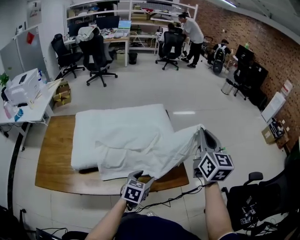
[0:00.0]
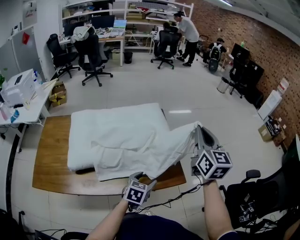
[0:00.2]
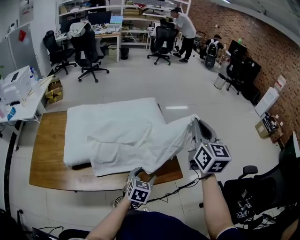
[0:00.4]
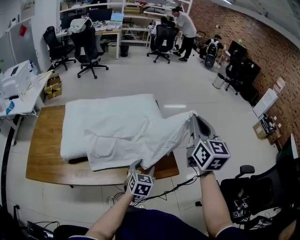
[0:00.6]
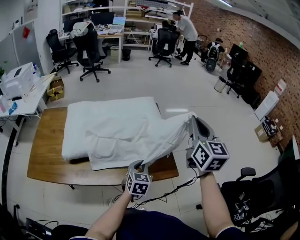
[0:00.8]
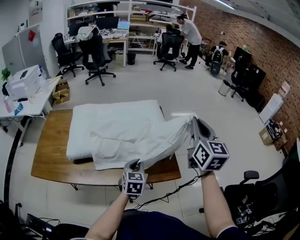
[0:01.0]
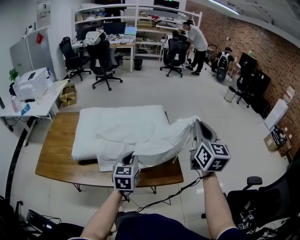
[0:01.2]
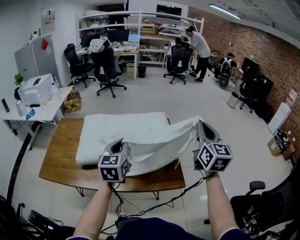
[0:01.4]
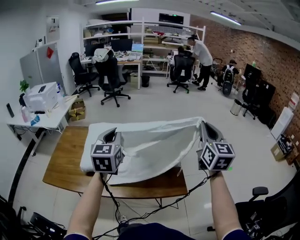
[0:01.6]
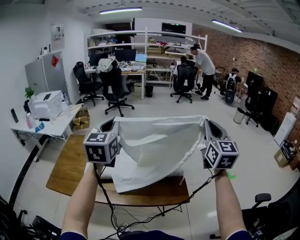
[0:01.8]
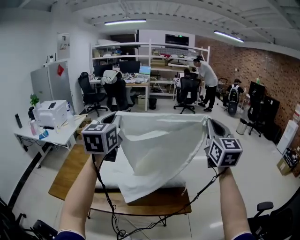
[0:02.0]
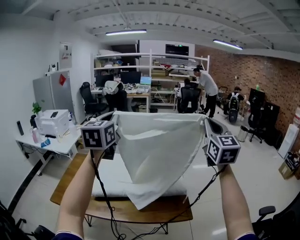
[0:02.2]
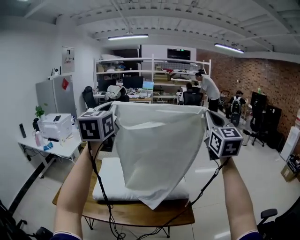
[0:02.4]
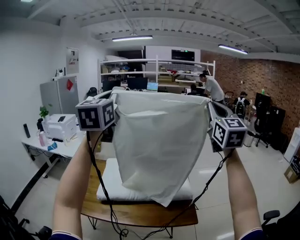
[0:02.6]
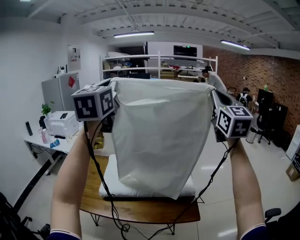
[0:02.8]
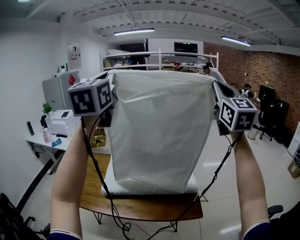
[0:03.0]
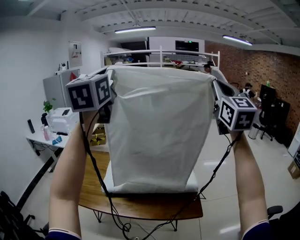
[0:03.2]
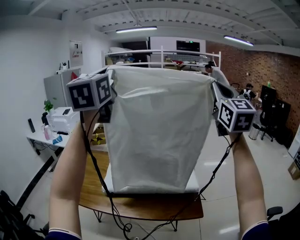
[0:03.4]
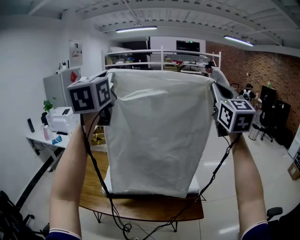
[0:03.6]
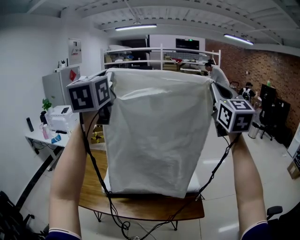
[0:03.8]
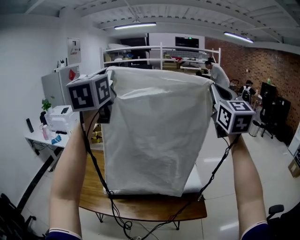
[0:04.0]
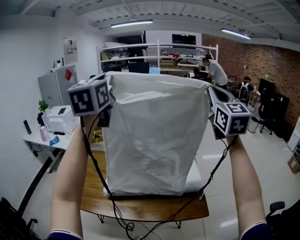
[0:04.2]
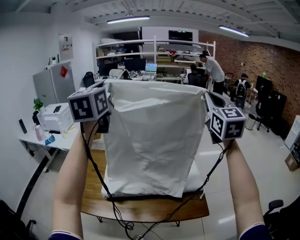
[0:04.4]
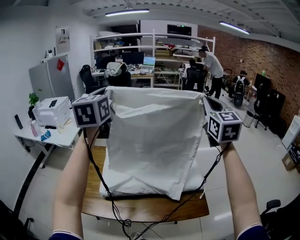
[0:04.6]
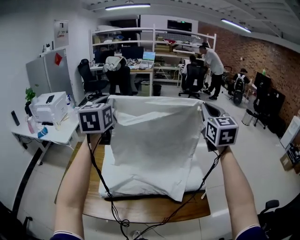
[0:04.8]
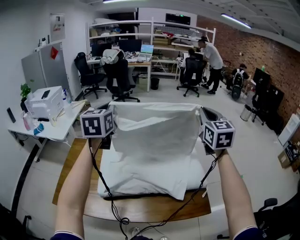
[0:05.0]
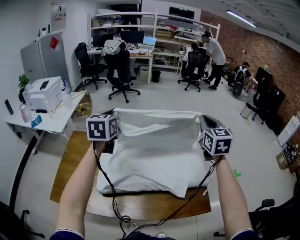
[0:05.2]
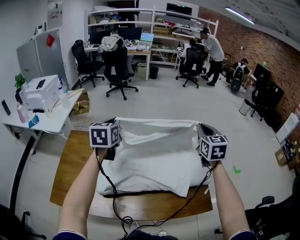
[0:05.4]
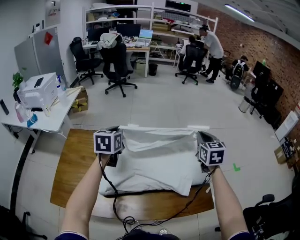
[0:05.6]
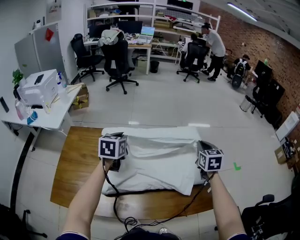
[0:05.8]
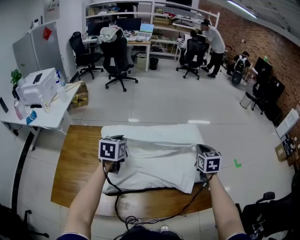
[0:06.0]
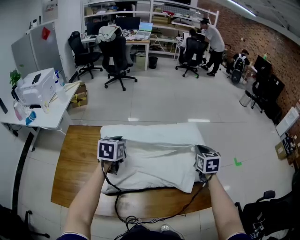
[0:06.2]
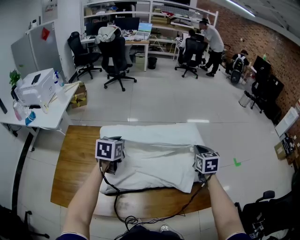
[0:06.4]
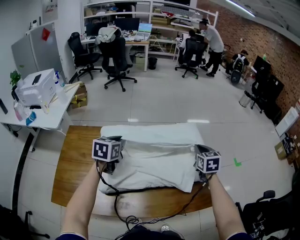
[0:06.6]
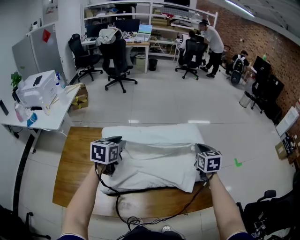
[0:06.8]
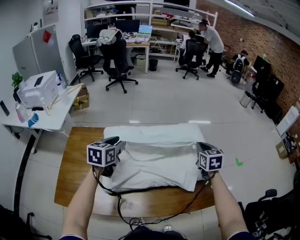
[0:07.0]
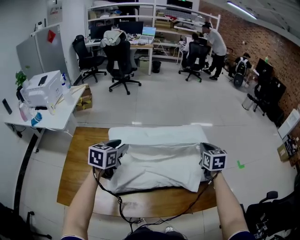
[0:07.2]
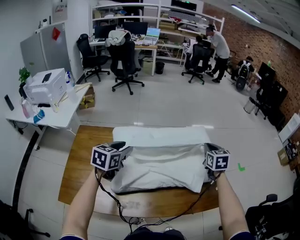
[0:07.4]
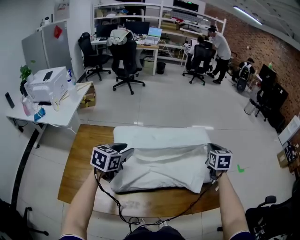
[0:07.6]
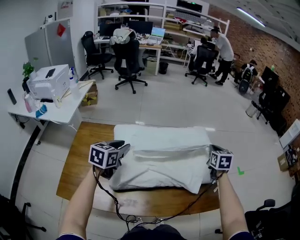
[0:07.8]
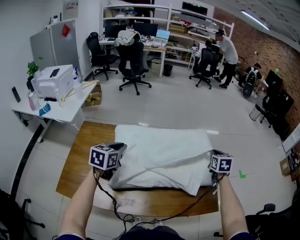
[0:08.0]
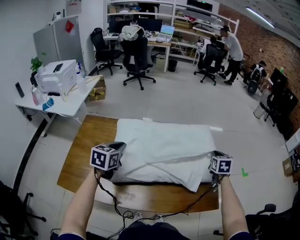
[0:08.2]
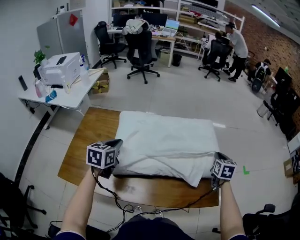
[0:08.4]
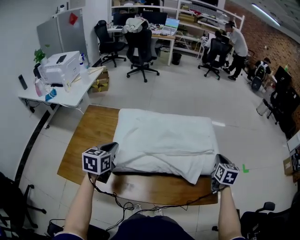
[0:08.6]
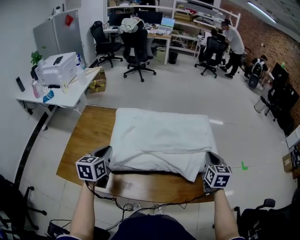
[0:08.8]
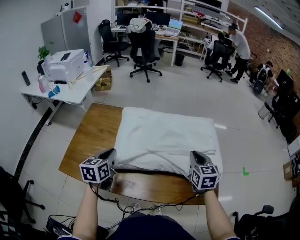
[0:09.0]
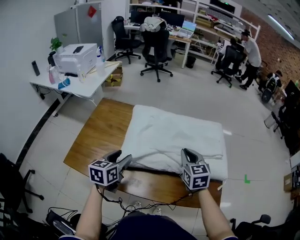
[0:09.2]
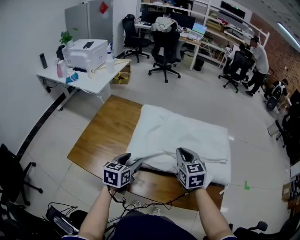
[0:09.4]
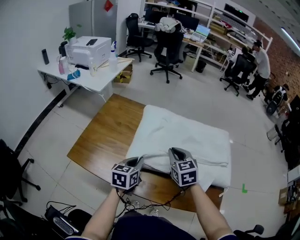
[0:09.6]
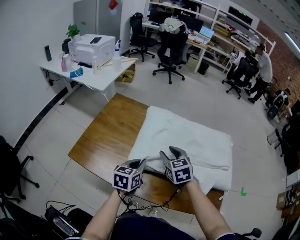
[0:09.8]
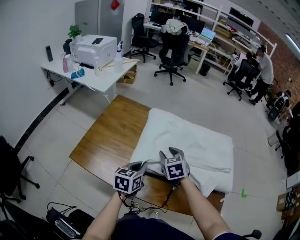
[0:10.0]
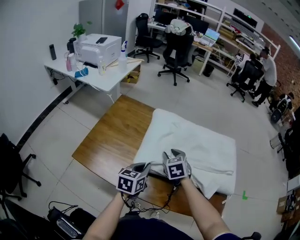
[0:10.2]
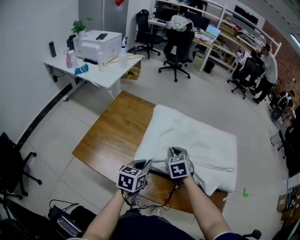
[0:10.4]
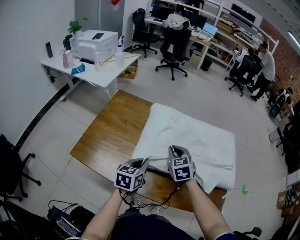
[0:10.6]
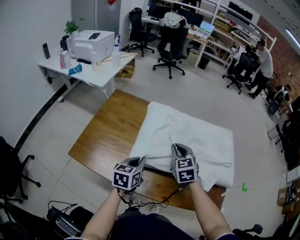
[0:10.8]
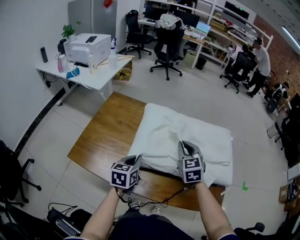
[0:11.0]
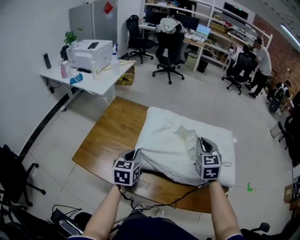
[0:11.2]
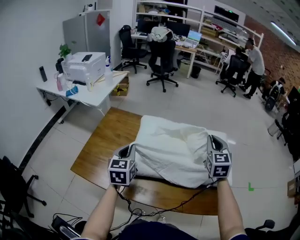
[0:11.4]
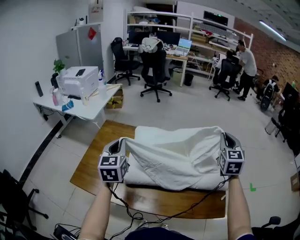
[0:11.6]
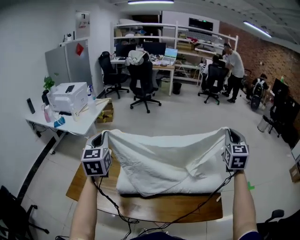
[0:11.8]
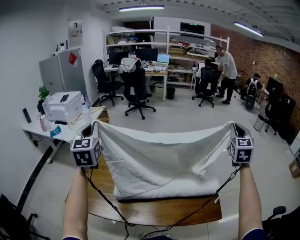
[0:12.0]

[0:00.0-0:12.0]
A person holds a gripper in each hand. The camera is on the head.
0:00.0 to 0:01.6: The left gripper is displaced upward and to the left by roughly 35 cm, angles its fingers upward, by roughly 30 degrees, and closes, while the right gripper goes roughly 5 cm upward.
0:01.6 to 0:03.0: The grippers both shift upward by roughly 35 cm. The left gripper rotates roughly 30 degrees; the right gripper rotates roughly 20 degrees.
0:03.0 to 0:04.4: The left gripper heads forward, downward and to the left, covering about 15 cm; the right gripper travels downward and forward by about 15 cm.
0:04.4 to 0:06.0: The grippers both shift downward by approximately 50 cm. The right gripper points its fingers some 40 degrees further downward. The left gripper angles its fingers downward, by roughly 40 degrees.
0:06.0 to 0:07.6: The left gripper shifts roughly 10 cm backward, and opens.
0:07.6 to 0:09.0: The left gripper heads backward, covering roughly 15 cm, changes its angle by about 30 degrees, and closes up. Meanwhile the right gripper shifts about 15 cm backward and to the left.
0:09.0 to 0:10.4: The right gripper shifts approximately 25 cm to the left, rotates roughly 30 degrees, and opens, then closes again. The left gripper shifts about 5 cm downward, and opens, then closes once more.
0:10.4 to 0:12.0: The left gripper moves upward, about 35 cm, and turns by some 50 degrees; the right gripper travels to the right and upward by some 50 cm, and points its fingers some 40 degrees further upward.

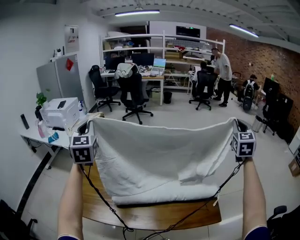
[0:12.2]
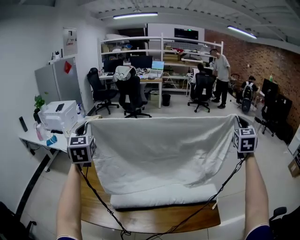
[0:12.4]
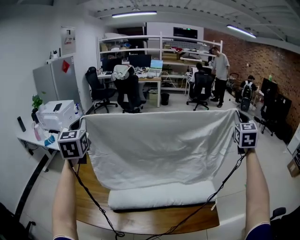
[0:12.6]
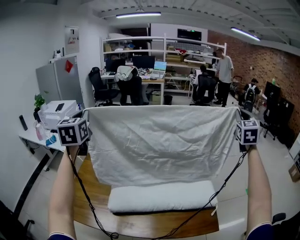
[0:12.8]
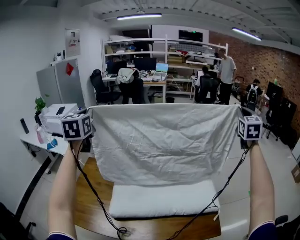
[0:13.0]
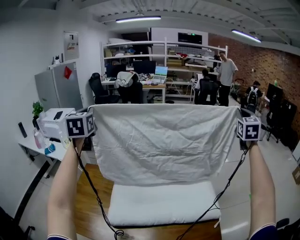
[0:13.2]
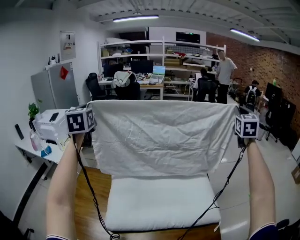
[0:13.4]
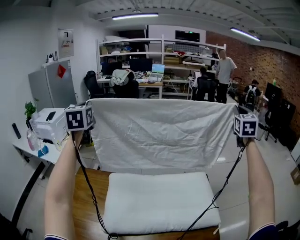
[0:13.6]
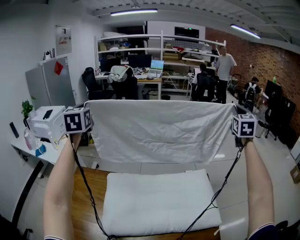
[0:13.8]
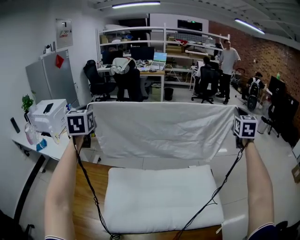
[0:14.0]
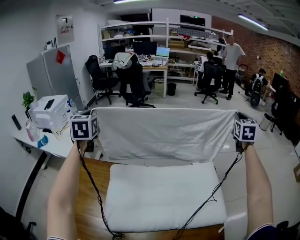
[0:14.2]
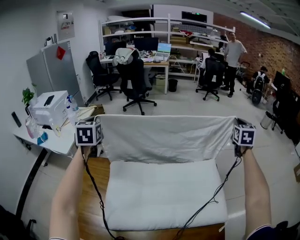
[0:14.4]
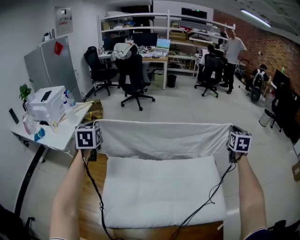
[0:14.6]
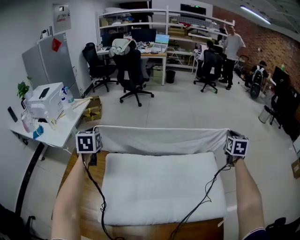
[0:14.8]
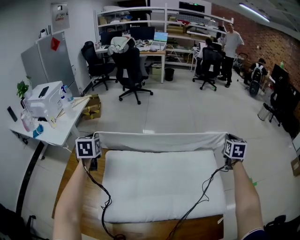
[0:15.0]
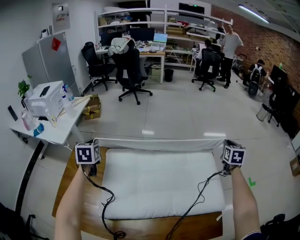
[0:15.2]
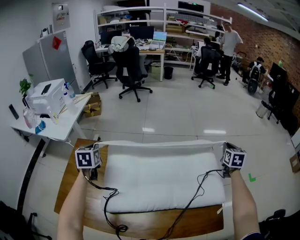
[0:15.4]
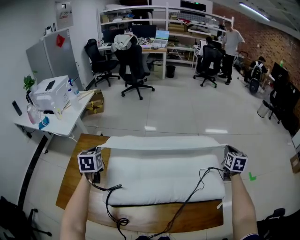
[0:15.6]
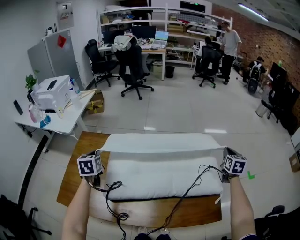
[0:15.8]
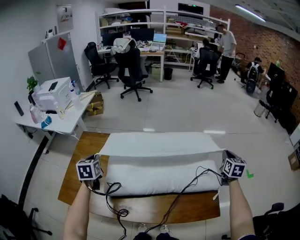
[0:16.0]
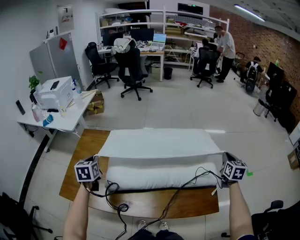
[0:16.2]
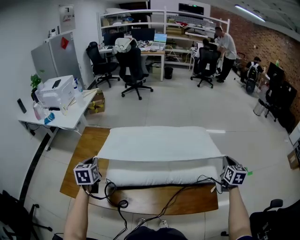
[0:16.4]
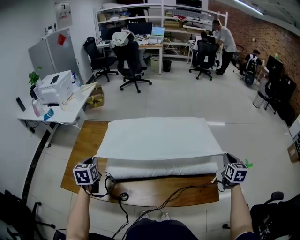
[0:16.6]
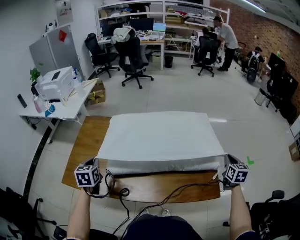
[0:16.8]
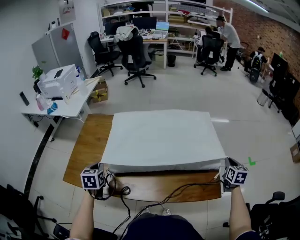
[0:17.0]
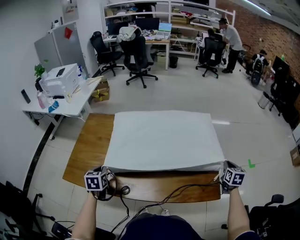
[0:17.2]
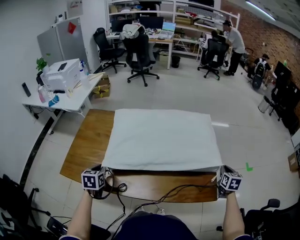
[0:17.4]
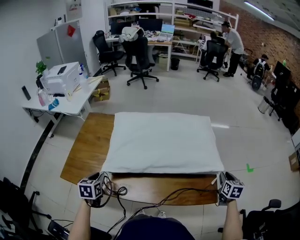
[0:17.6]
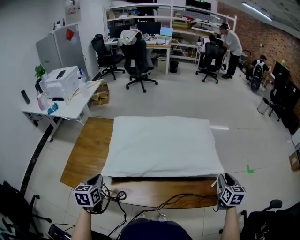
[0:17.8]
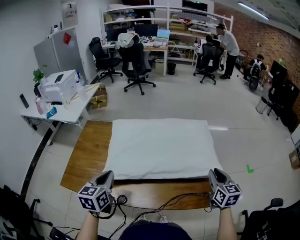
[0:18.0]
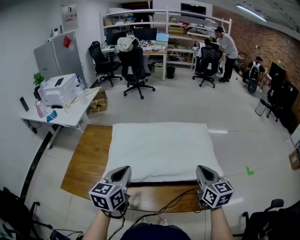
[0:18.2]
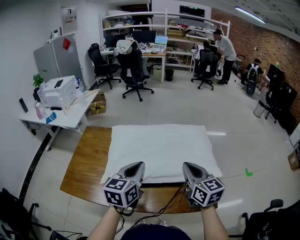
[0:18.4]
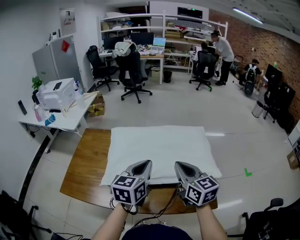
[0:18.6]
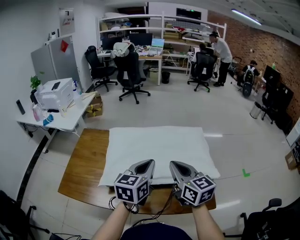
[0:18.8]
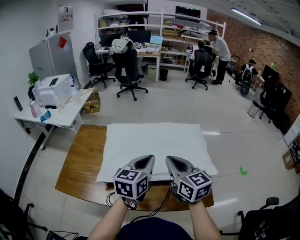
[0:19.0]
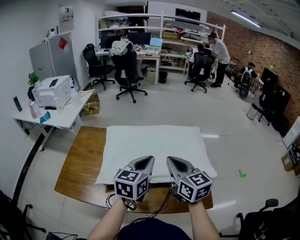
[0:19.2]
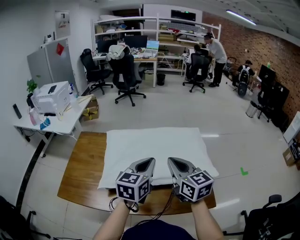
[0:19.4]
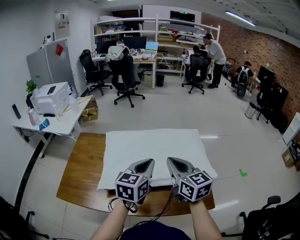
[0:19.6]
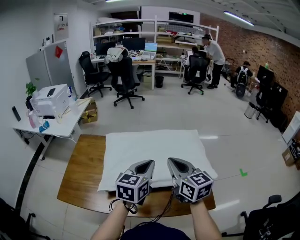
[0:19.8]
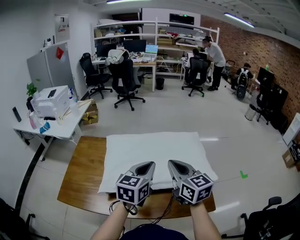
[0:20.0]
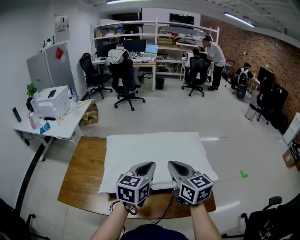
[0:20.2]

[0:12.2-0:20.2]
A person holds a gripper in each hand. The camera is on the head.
0:12.2 to 0:13.8: Both grippers move forward, some 25 cm.
0:13.8 to 0:15.4: Both grippers move downward, roughly 35 cm. The left gripper rotates about 30 degrees; the right gripper turns by roughly 30 degrees.
0:15.4 to 0:17.0: The grippers both shift backward by about 25 cm.
0:17.0 to 0:18.6: The left gripper moves to the right and upward, about 30 cm, and swivels roughly 40 degrees, while the right gripper moves to the left and upward, about 35 cm, turns by about 40 degrees, and opens and closes again.
0:18.6 to 0:20.2: The grippers make only small movements.

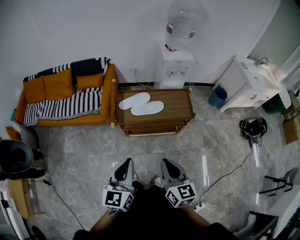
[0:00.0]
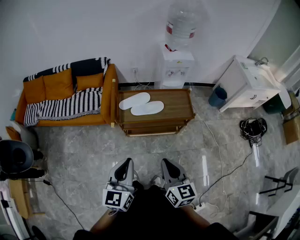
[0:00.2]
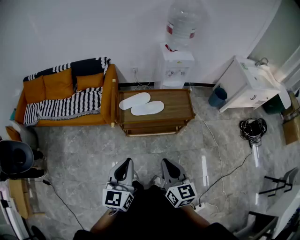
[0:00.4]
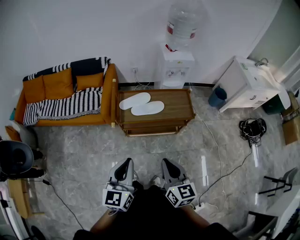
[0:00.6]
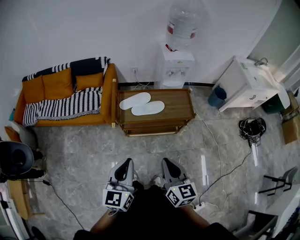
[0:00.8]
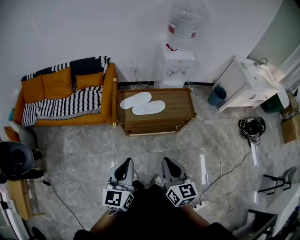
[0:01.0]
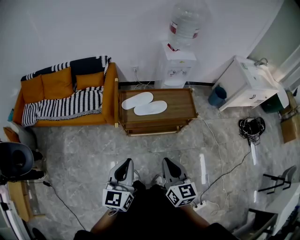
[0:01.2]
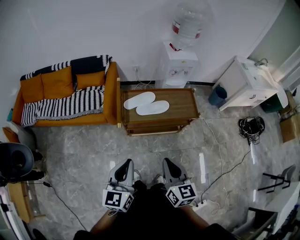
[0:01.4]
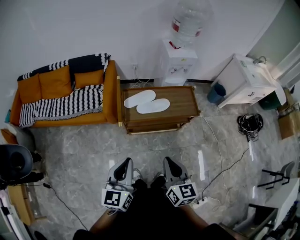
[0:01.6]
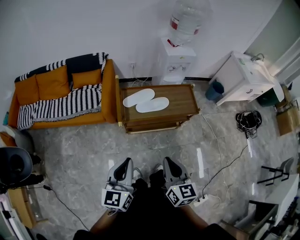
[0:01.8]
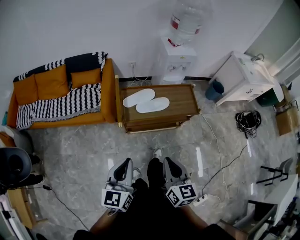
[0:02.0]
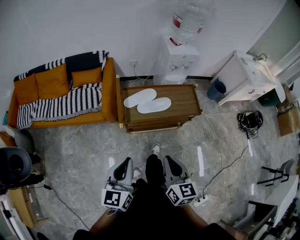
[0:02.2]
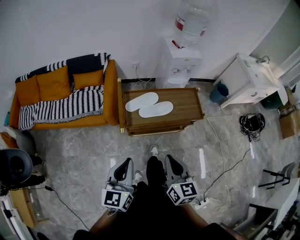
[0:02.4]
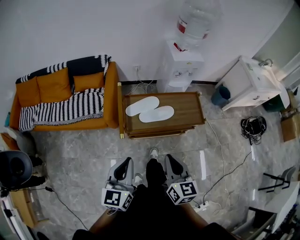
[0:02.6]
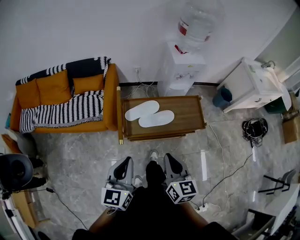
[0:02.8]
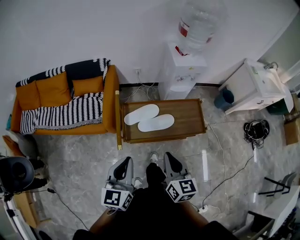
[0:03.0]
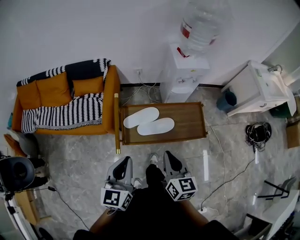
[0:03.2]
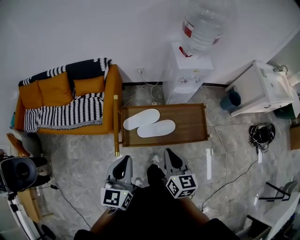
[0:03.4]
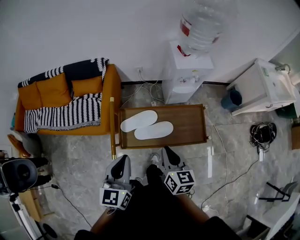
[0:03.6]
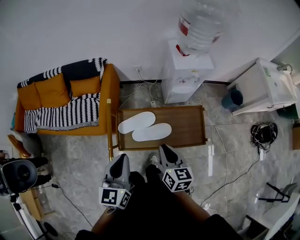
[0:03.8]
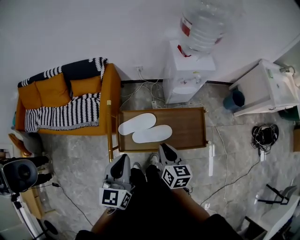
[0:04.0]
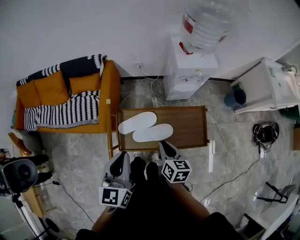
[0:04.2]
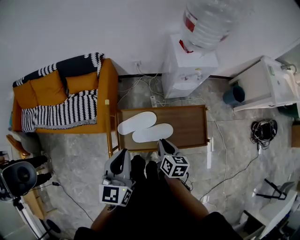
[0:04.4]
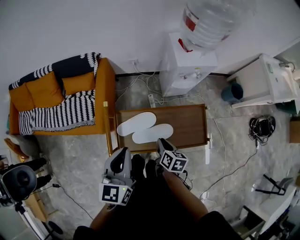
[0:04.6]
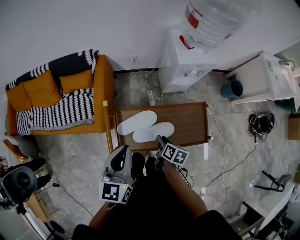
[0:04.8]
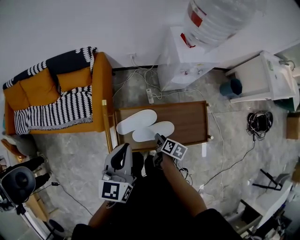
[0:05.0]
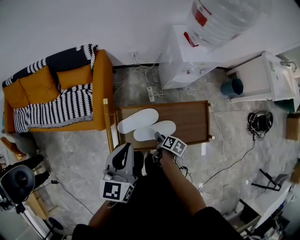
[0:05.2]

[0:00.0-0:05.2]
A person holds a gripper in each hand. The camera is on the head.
0:00.0 to 0:01.8: The two grippers go approximately 10 cm to the left.
0:01.8 to 0:03.4: Both grippers move forward, about 25 cm.
0:03.4 to 0:05.2: The left gripper shifts roughly 20 cm forward, while the right gripper goes roughly 35 cm downward and forward, angles its fingers downward, by approximately 30 degrees, and opens up.
